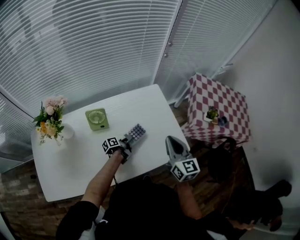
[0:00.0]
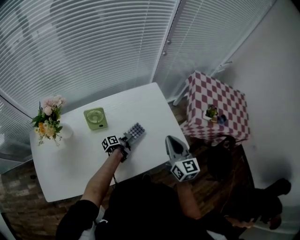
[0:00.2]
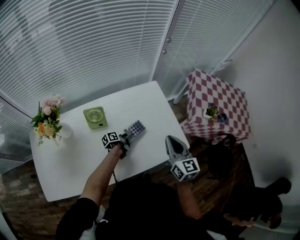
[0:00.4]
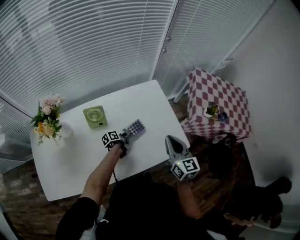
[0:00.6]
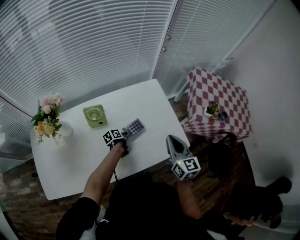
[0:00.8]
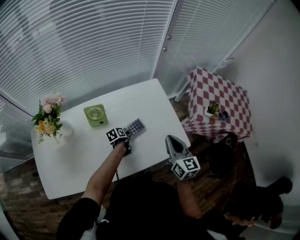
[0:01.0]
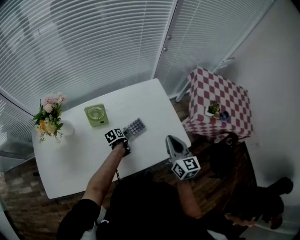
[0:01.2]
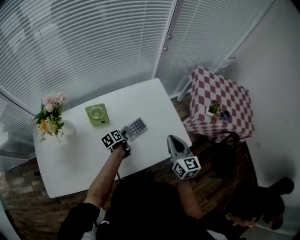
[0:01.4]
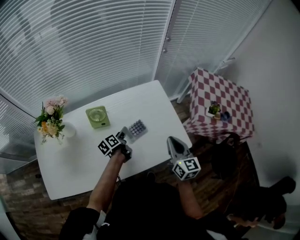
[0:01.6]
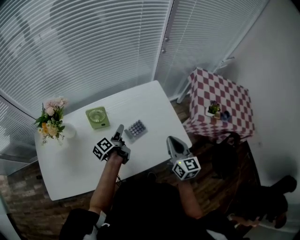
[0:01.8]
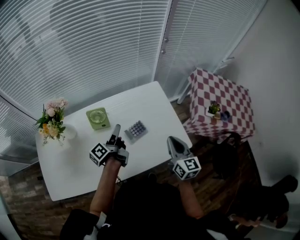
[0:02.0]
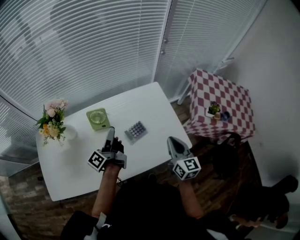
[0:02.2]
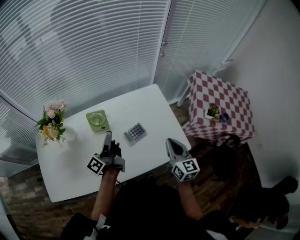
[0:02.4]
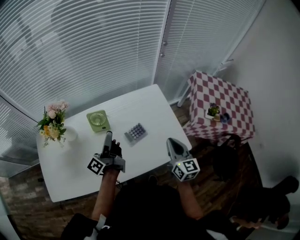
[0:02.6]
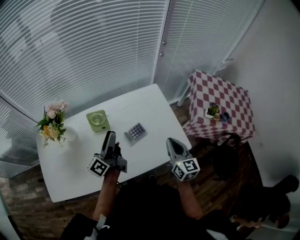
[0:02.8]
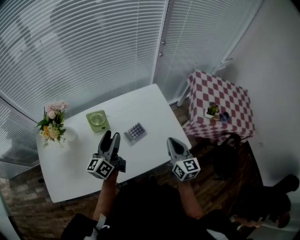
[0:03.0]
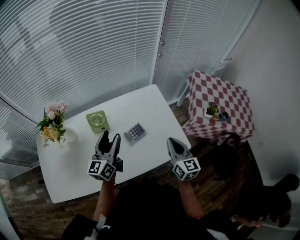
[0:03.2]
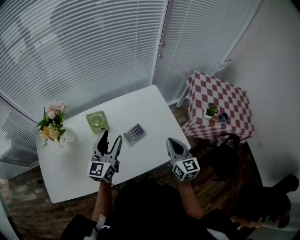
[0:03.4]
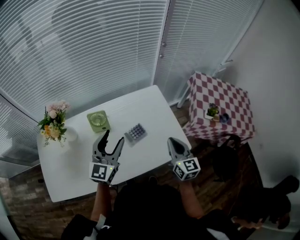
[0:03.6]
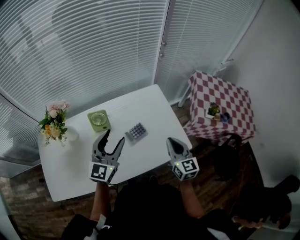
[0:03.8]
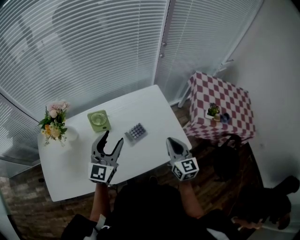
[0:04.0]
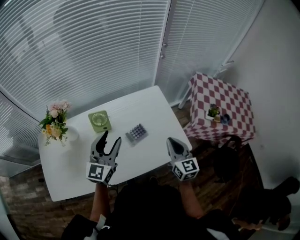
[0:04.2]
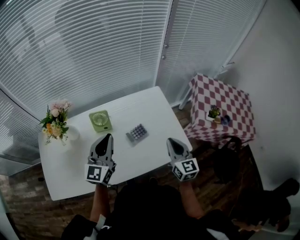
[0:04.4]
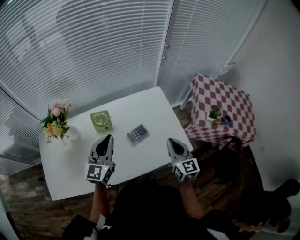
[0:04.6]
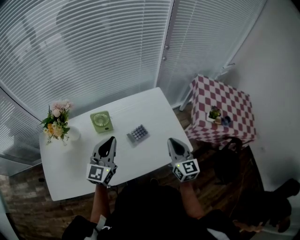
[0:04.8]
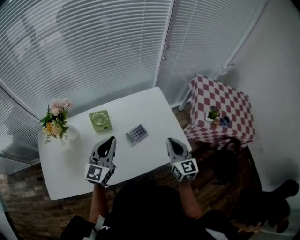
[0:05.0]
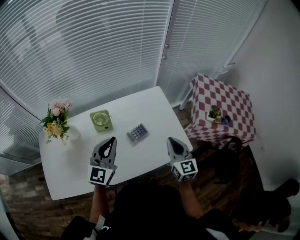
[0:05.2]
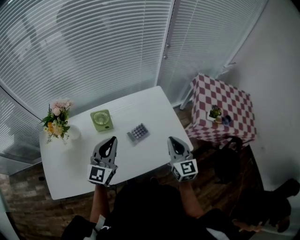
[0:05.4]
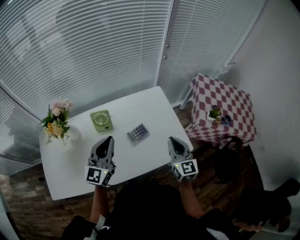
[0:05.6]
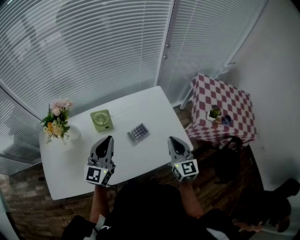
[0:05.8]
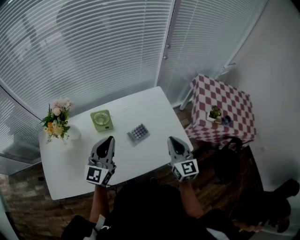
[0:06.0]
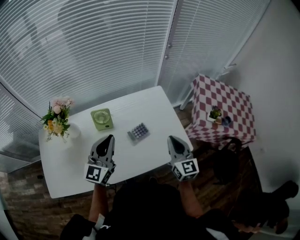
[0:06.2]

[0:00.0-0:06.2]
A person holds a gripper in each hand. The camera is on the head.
0:00.0 to 0:01.6: The left gripper moves upward and to the left, roughly 10 cm, changes its angle by roughly 30 degrees, and opens.
0:01.6 to 0:03.2: The left gripper travels upward by roughly 20 cm, and tips its fingers upward by some 30 degrees.
0:03.2 to 0:04.6: The left gripper rotates some 20 degrees, and closes up.
0:04.6 to 0:06.2: There are only small adjustments of the grippers.

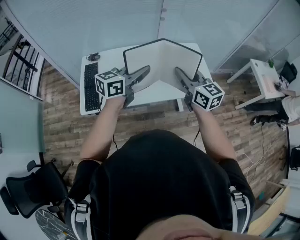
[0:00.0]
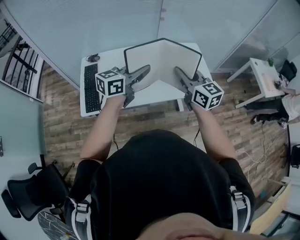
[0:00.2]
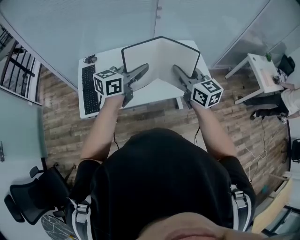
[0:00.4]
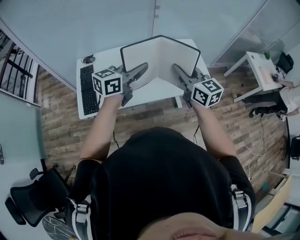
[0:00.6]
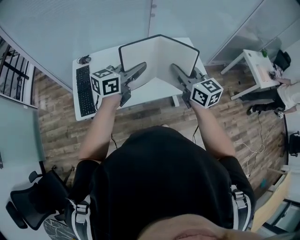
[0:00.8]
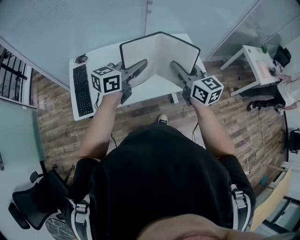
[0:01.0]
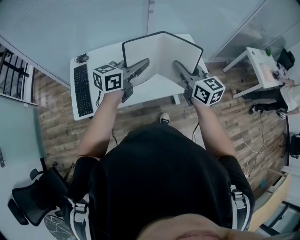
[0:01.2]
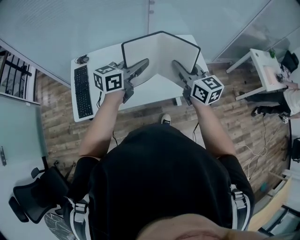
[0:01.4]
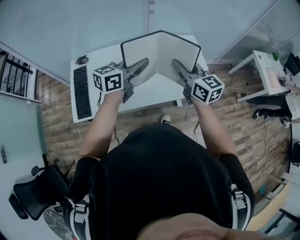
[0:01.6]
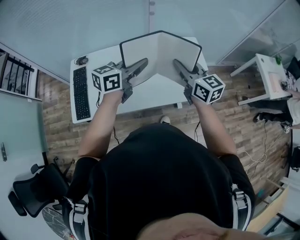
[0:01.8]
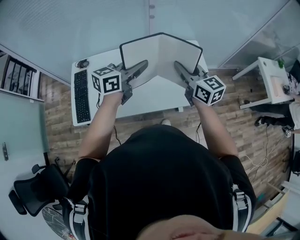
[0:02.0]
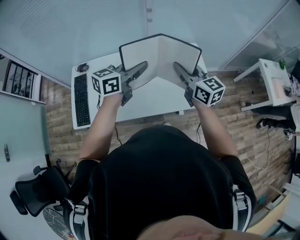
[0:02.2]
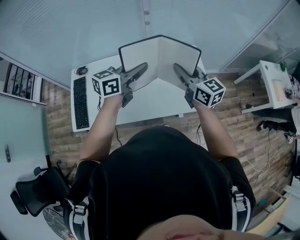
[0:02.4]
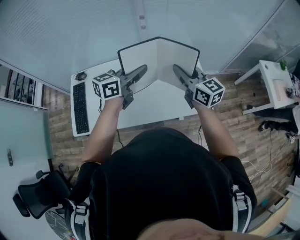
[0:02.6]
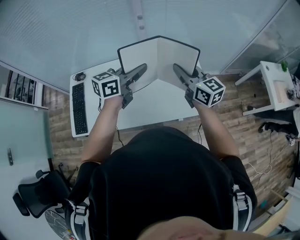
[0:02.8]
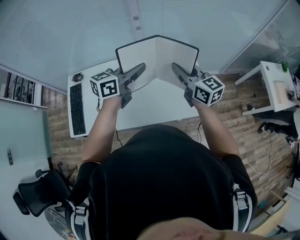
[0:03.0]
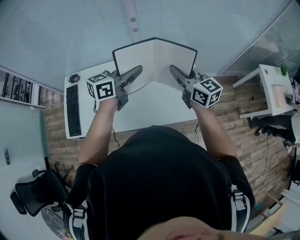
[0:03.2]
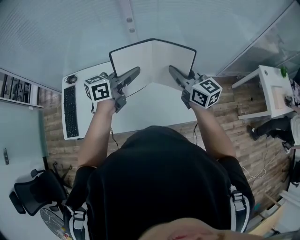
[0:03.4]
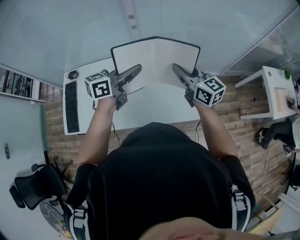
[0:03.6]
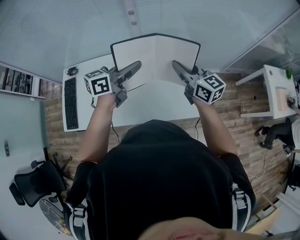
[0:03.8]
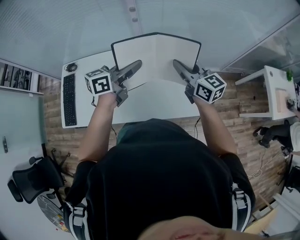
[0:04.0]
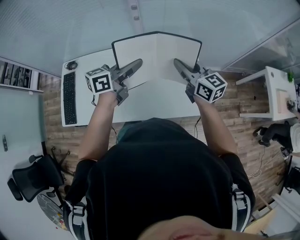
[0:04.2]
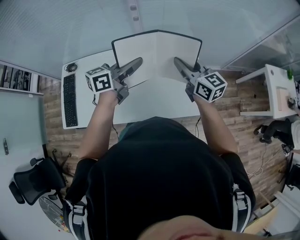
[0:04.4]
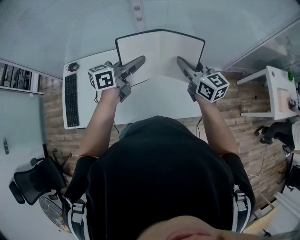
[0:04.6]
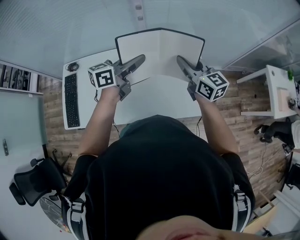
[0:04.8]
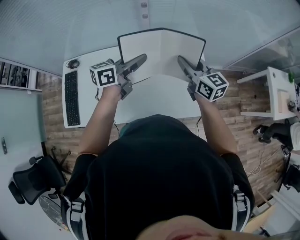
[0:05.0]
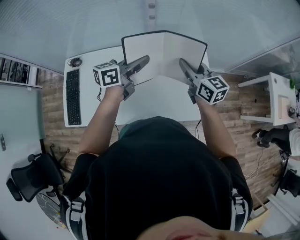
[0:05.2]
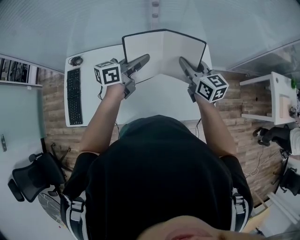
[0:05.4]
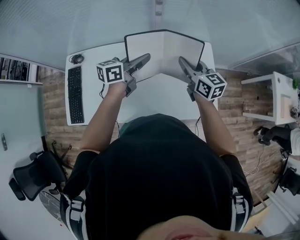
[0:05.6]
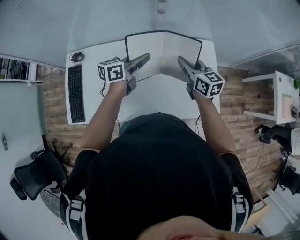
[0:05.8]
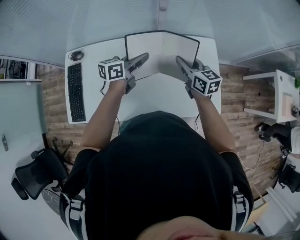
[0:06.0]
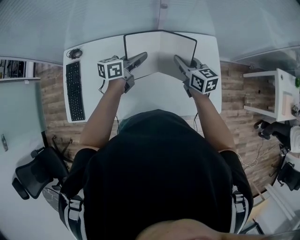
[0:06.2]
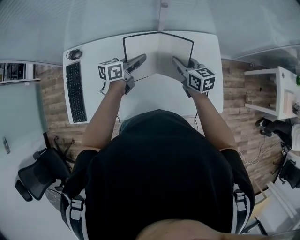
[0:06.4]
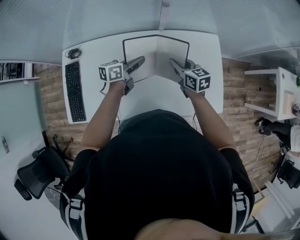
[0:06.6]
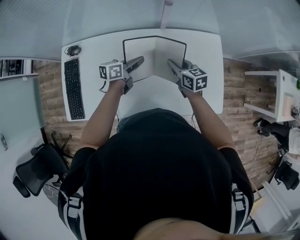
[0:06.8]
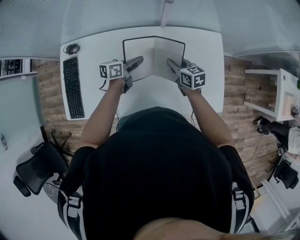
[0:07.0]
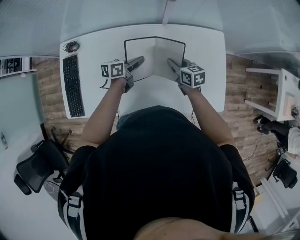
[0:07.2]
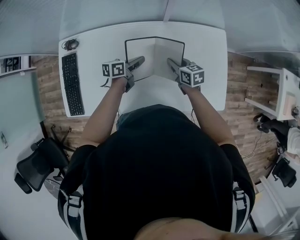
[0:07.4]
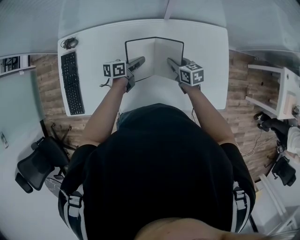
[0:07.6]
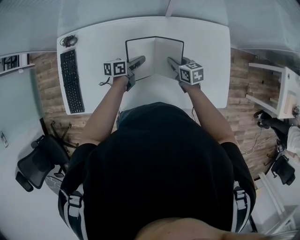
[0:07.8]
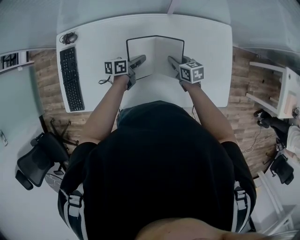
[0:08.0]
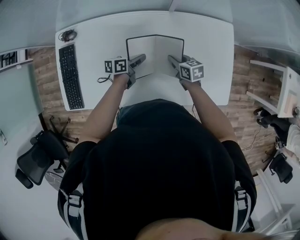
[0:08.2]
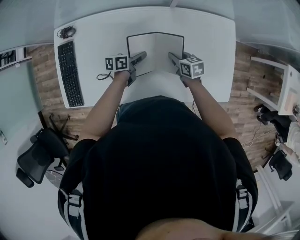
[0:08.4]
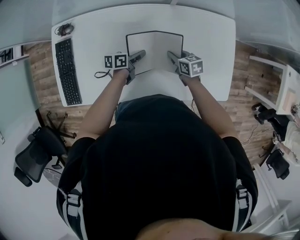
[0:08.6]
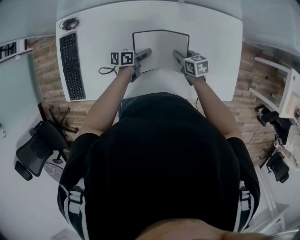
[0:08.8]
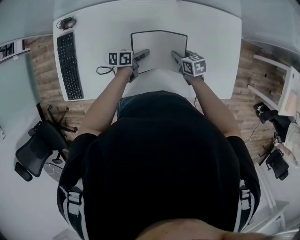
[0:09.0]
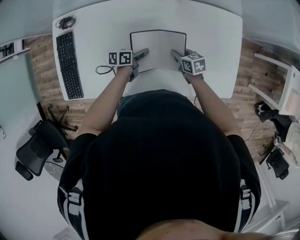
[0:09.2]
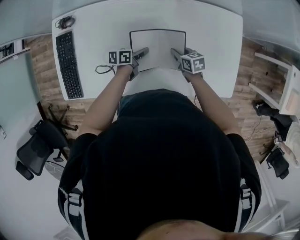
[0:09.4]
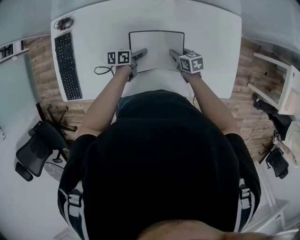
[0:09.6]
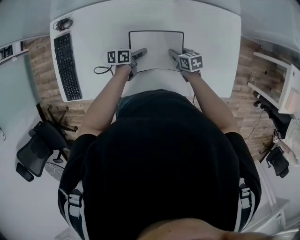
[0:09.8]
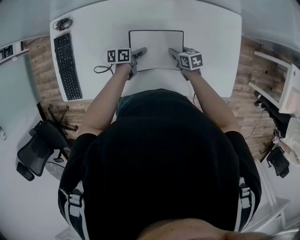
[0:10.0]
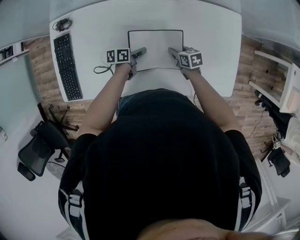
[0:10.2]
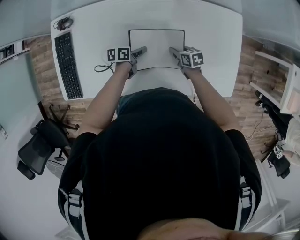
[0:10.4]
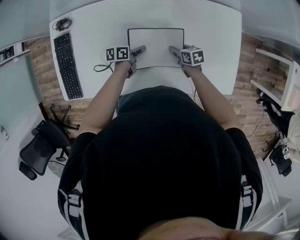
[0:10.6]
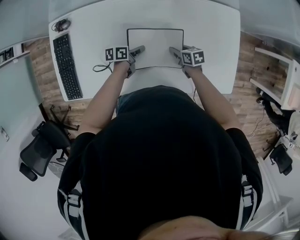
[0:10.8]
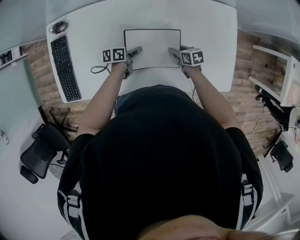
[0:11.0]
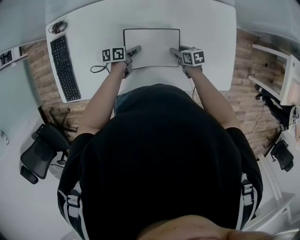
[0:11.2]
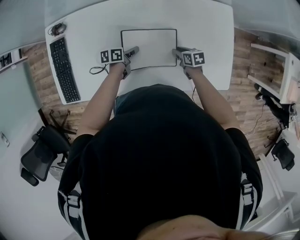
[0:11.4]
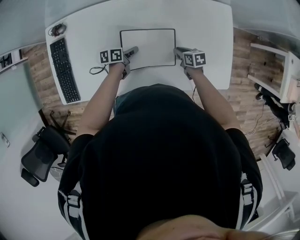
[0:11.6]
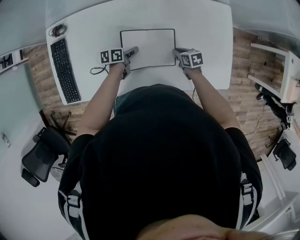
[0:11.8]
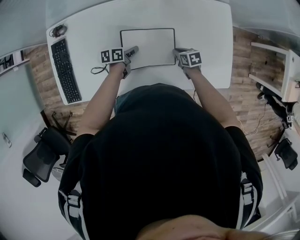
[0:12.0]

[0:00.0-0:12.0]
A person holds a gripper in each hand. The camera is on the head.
0:00.0 to 0:01.6: Both grippers travel together forward and to the right, approximately 15 cm.
0:01.6 to 0:03.0: The two grippers go roughly 20 cm forward and to the right.
0:03.0 to 0:04.4: The right gripper goes about 5 cm forward; the left gripper ends up approximately 5 cm from where it was.
0:04.4 to 0:06.0: The grippers both shift to the left, downward and forward by some 20 cm.
0:06.0 to 0:07.6: The grippers both shift downward by about 20 cm. The right gripper swivels approximately 20 degrees. Meanwhile the left gripper rotates about 20 degrees.
0:07.6 to 0:09.0: The two grippers go about 10 cm downward.
0:09.0 to 0:10.4: The grippers stay close to where they were, moving slightly.
0:10.4 to 0:12.0: The right gripper moves to the right, some 5 cm.

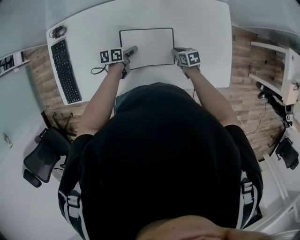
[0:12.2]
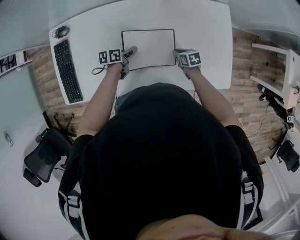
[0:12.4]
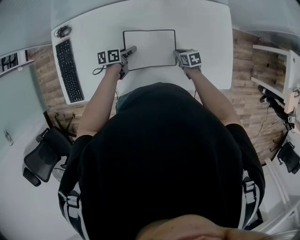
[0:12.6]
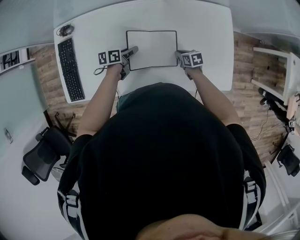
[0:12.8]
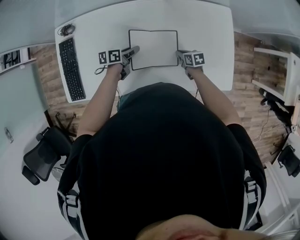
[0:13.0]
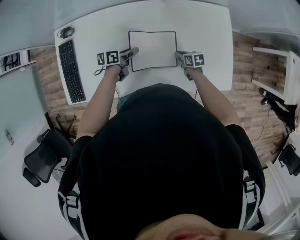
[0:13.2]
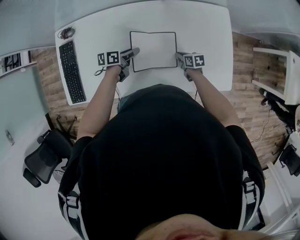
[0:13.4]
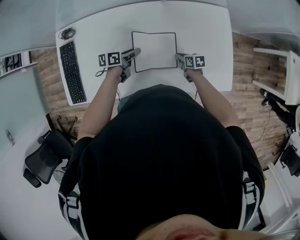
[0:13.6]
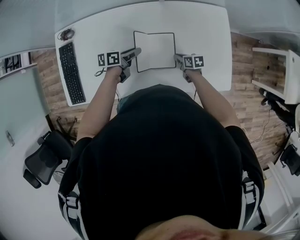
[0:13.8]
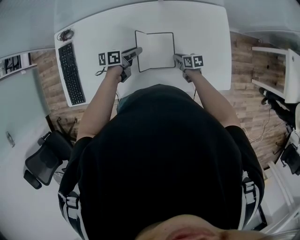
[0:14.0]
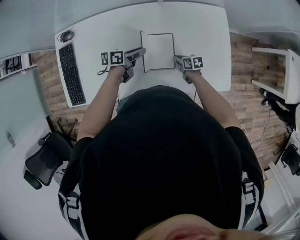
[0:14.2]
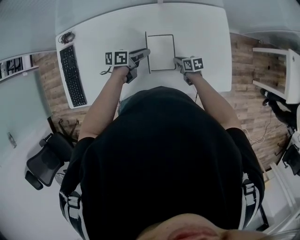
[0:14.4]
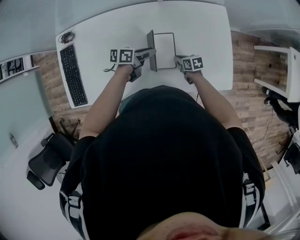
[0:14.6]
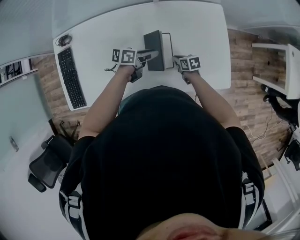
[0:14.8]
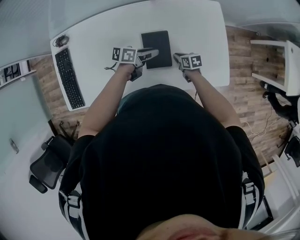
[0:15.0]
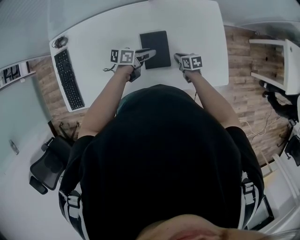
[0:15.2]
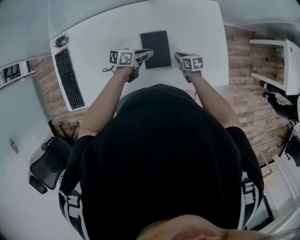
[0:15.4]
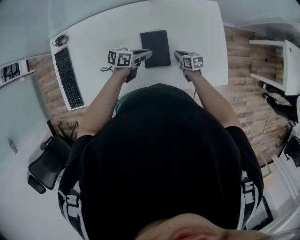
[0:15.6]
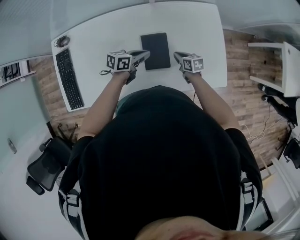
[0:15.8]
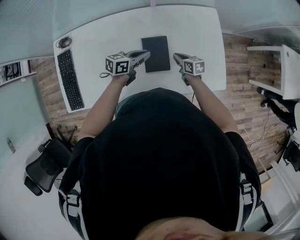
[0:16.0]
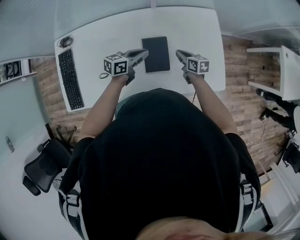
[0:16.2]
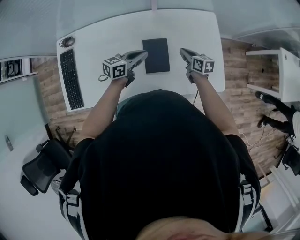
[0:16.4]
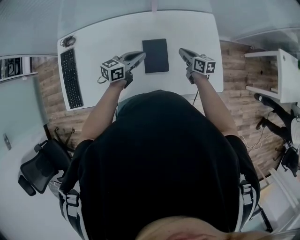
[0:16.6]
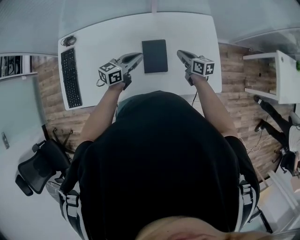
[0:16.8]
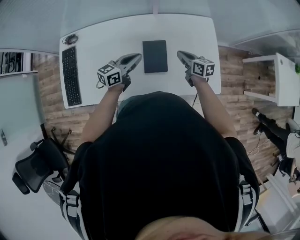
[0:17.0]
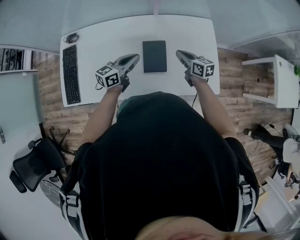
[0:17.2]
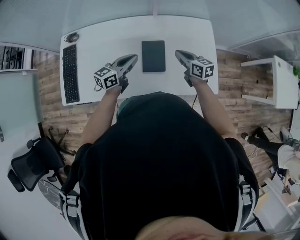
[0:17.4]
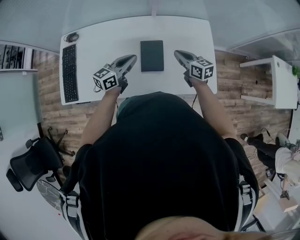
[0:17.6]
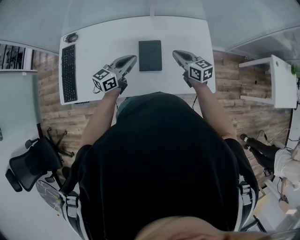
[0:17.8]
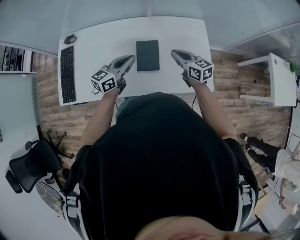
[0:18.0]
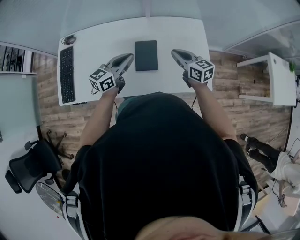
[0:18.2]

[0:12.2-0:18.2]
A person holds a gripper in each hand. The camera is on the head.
0:12.2 to 0:13.8: The left gripper is displaced upward by roughly 10 cm.
0:13.8 to 0:15.2: The left gripper shifts by approximately 10 cm.
0:15.2 to 0:16.6: The left gripper moves upward, about 10 cm, turns by about 30 degrees, and closes its fingers, while the right gripper goes roughly 15 cm upward, and rotates some 20 degrees.
0:16.6 to 0:18.2: The right gripper travels upward and backward by some 15 cm, and changes its angle by approximately 20 degrees. Meanwhile the left gripper travels backward and upward by roughly 10 cm.
